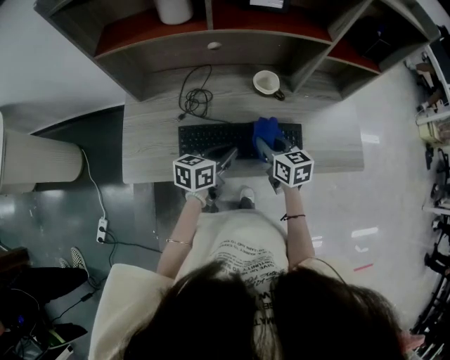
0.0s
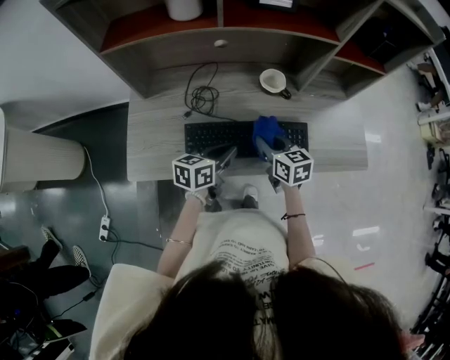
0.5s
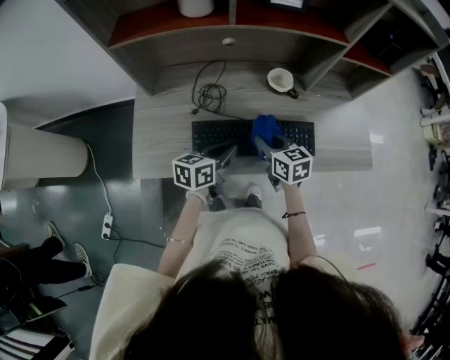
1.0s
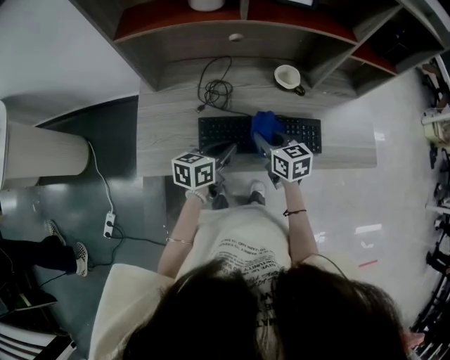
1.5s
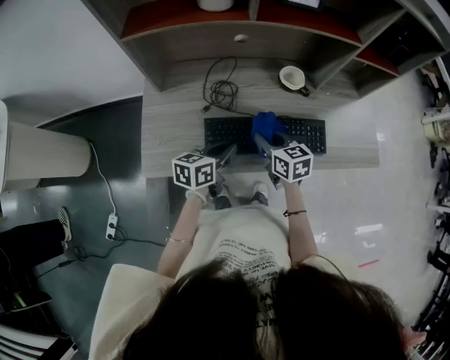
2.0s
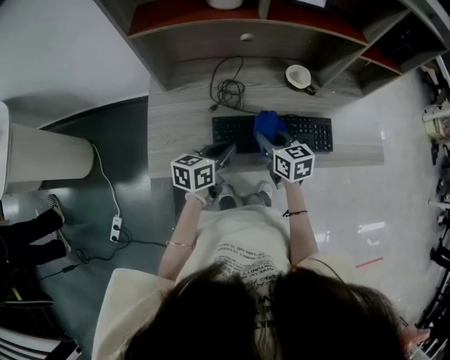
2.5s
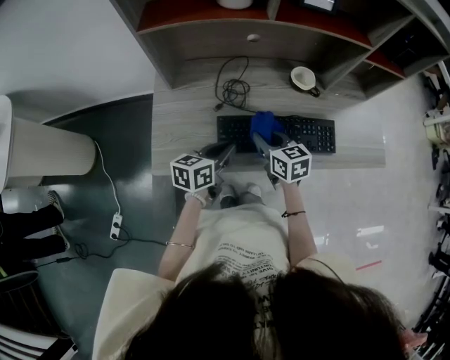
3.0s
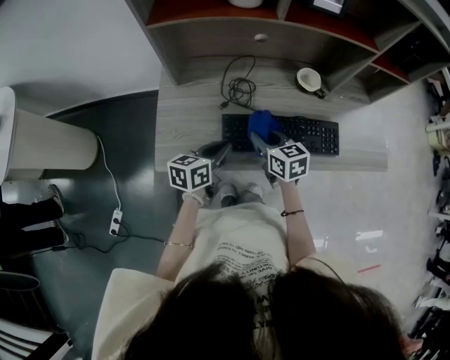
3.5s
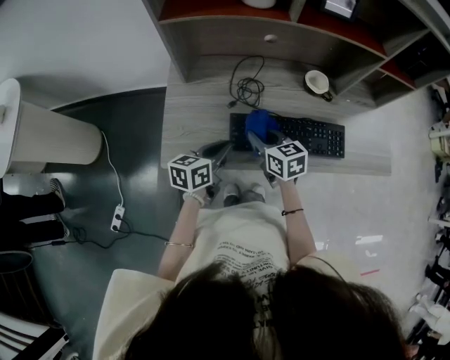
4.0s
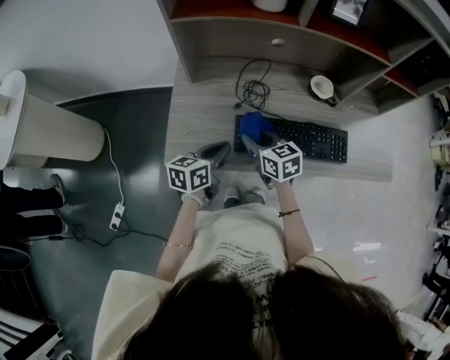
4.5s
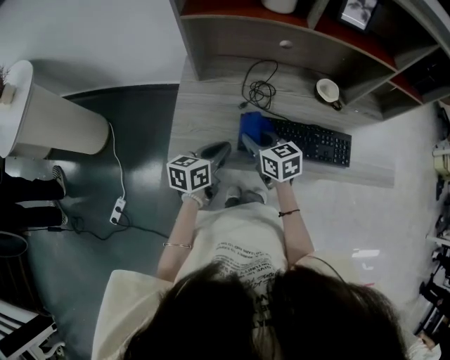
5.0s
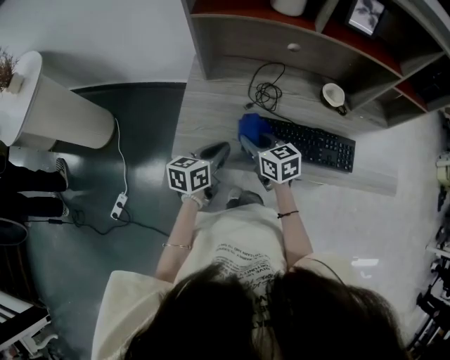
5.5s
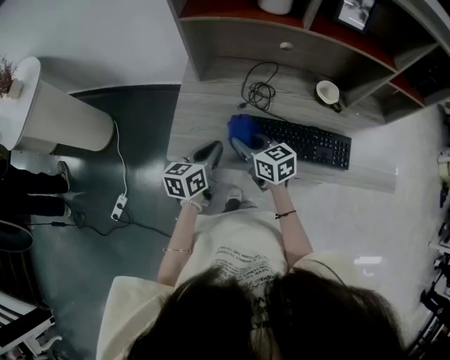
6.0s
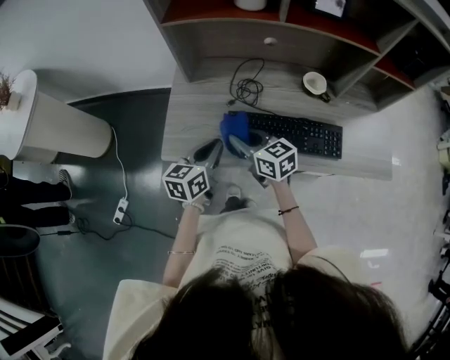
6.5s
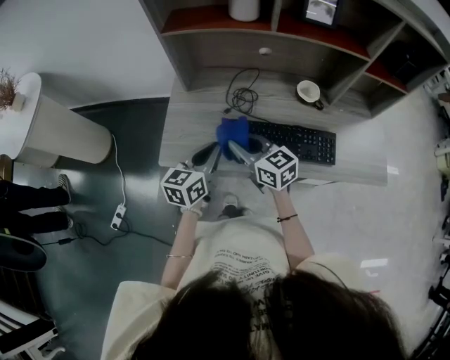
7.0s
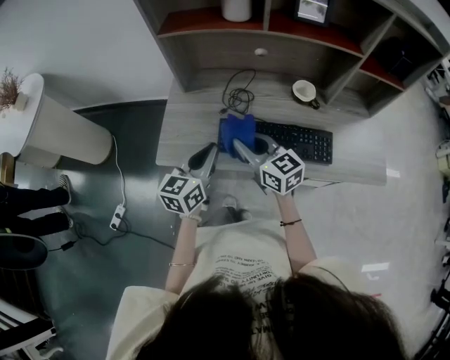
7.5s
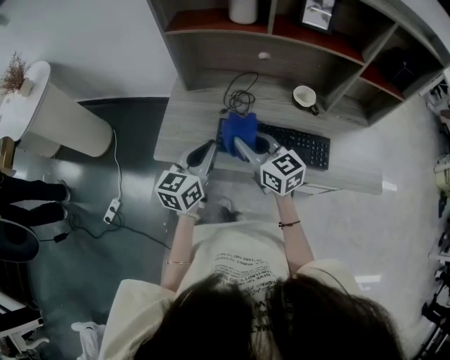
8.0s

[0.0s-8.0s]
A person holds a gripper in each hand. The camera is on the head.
0.0s to 2.0s: Both grippers travel together to the left, about 10 cm.
2.0s to 4.0s: Both grippers move to the left, some 10 cm.
4.0s to 6.0s: The right gripper heads to the left, covering roughly 5 cm. Meanwhile the left gripper changes place by about 5 cm.
6.0s to 8.0s: Both grippers travel together upward, to the right and backward, roughly 15 cm.

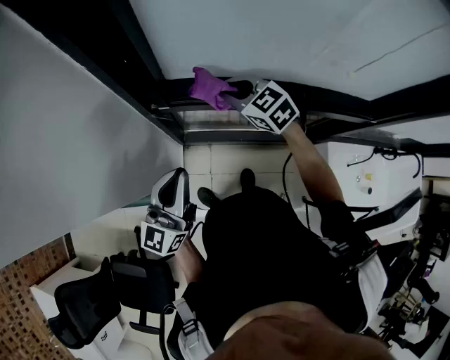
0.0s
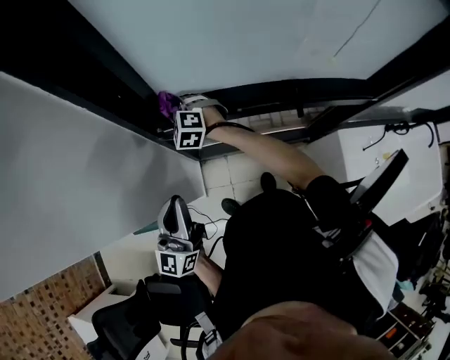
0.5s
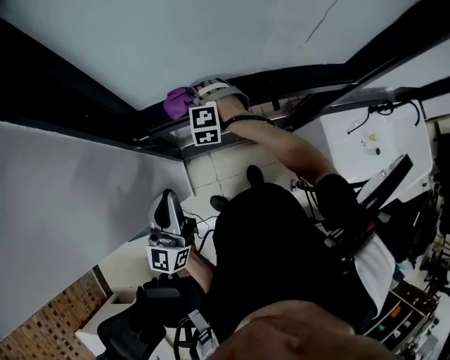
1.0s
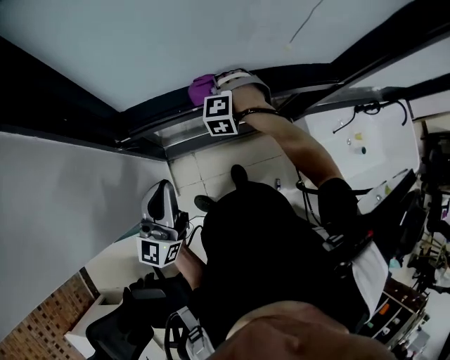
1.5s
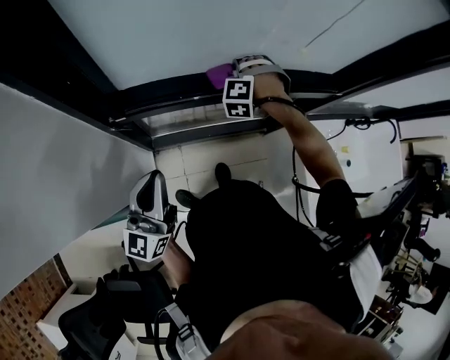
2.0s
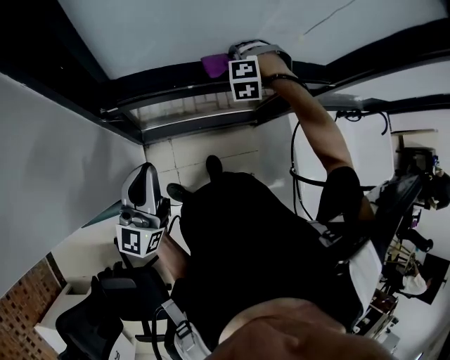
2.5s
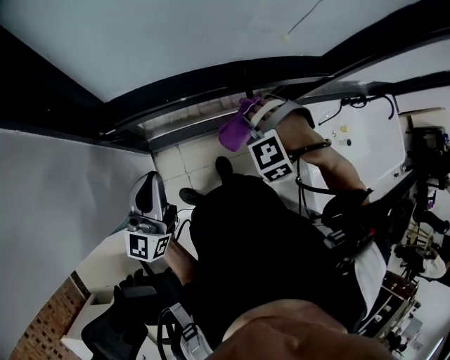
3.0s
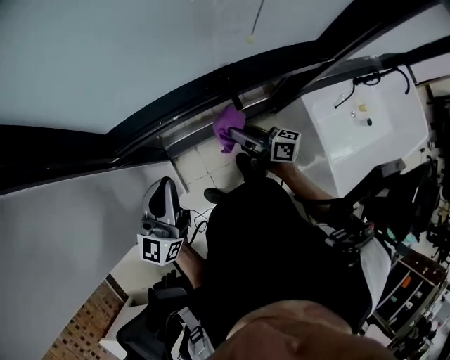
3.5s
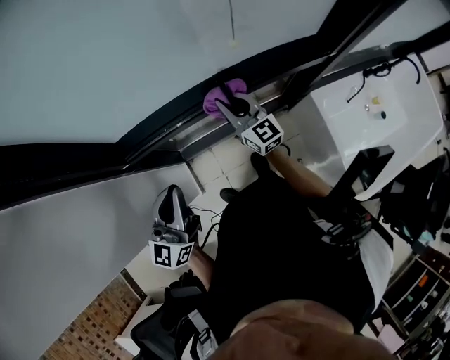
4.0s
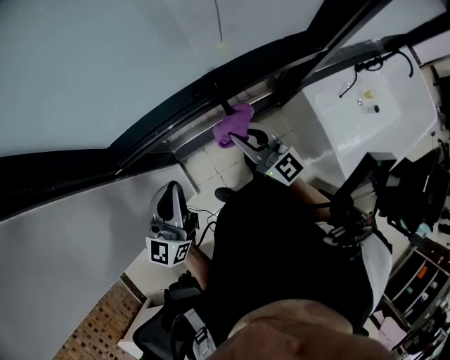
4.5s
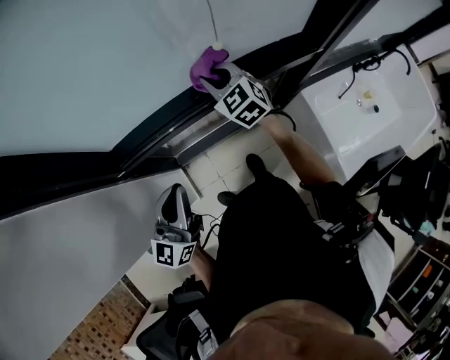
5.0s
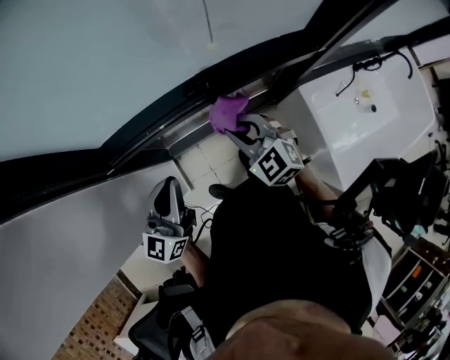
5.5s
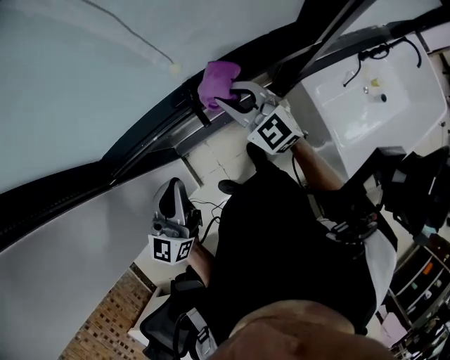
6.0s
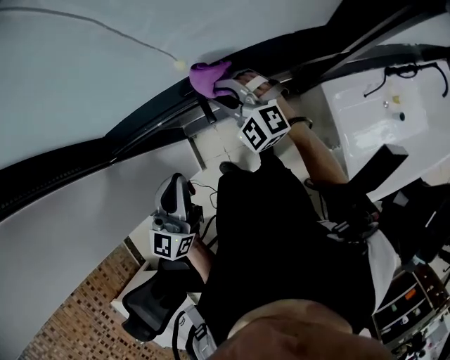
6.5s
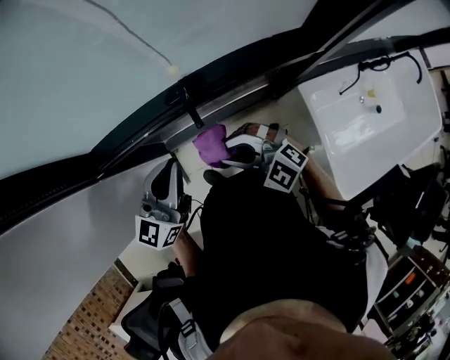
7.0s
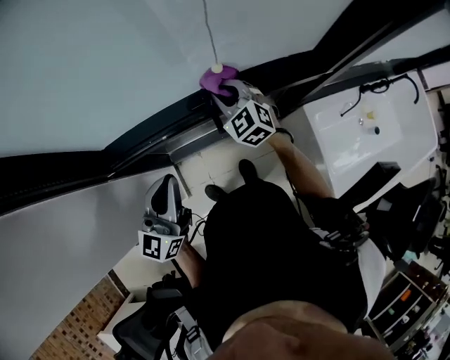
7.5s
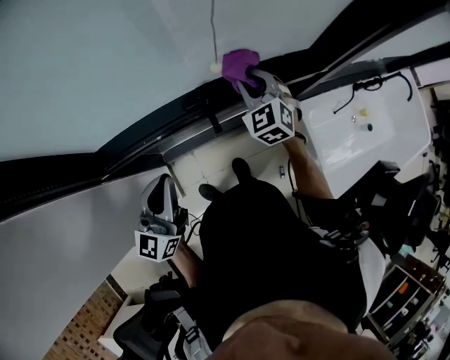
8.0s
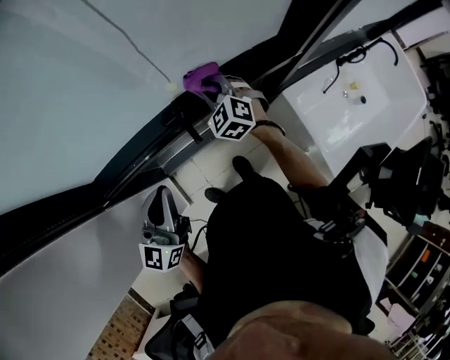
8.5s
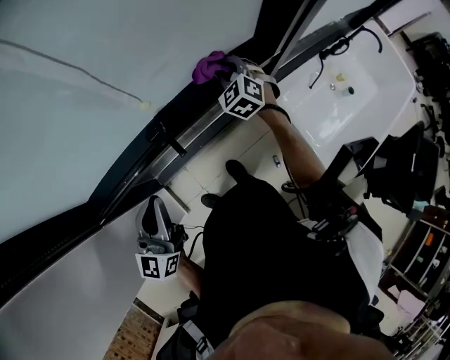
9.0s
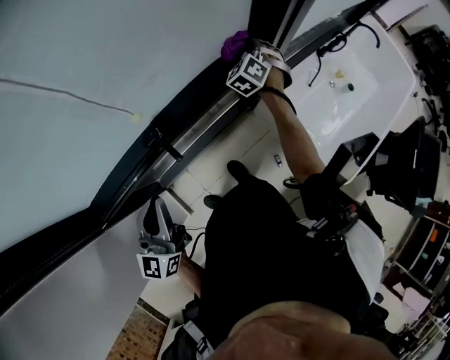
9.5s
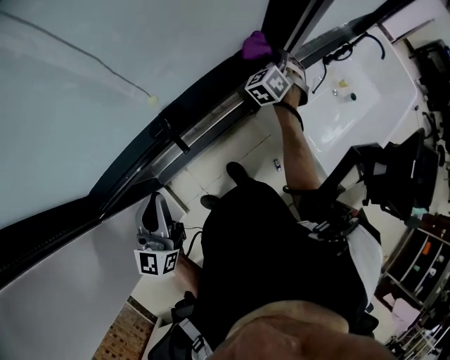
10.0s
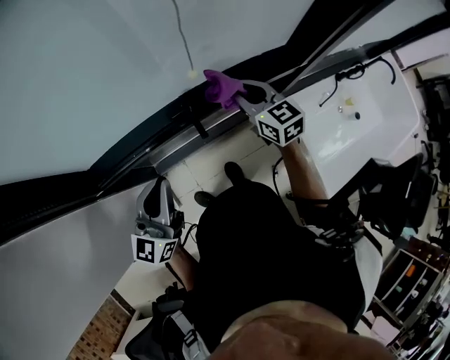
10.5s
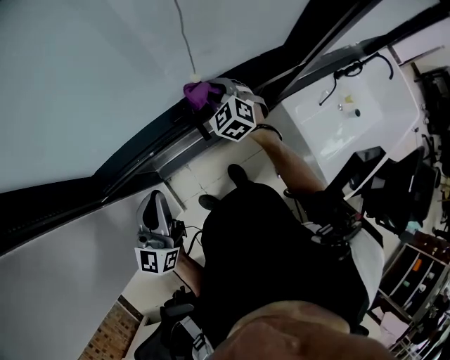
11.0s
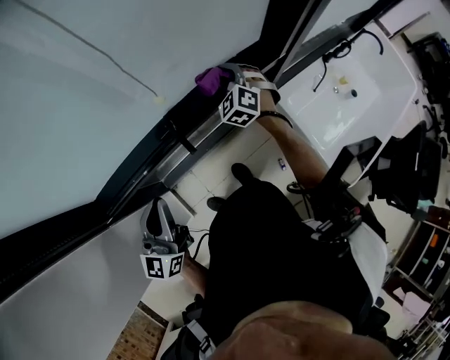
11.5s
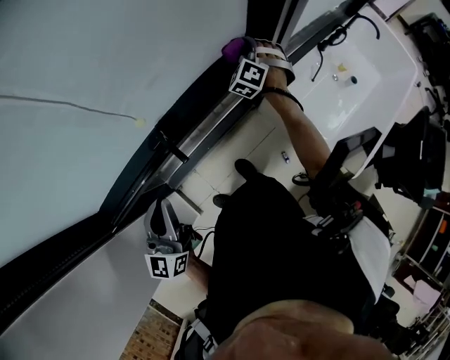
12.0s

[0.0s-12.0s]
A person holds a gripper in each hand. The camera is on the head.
0.0s to 2.0s: The right gripper changes place by approximately 25 cm, and swivels about 80 degrees.
2.0s to 4.0s: The left gripper heads to the right and forward, covering roughly 10 cm. The right gripper moves some 20 cm backward and comes back, and tilts its fingers about 50 degrees upward.
4.0s to 6.0s: The right gripper goes forward and backward, about 15 cm each way, reversing 3 times, and swivels roughly 20 degrees. Meanwhile the left gripper shifts about 10 cm to the right.
6.0s to 8.0s: The right gripper moves about 15 cm backward and comes back, and swivels some 30 degrees.
8.0s to 10.0s: The right gripper changes place by about 25 cm, and turns by approximately 40 degrees.

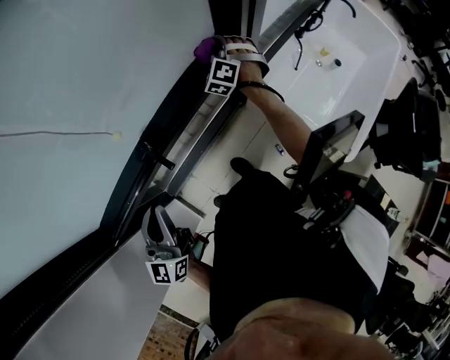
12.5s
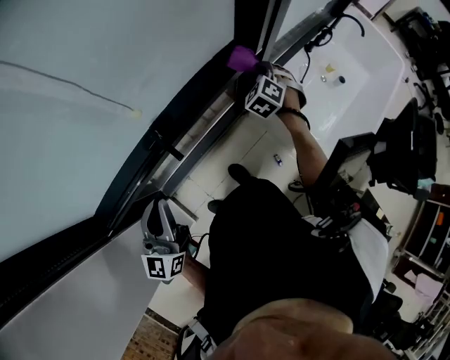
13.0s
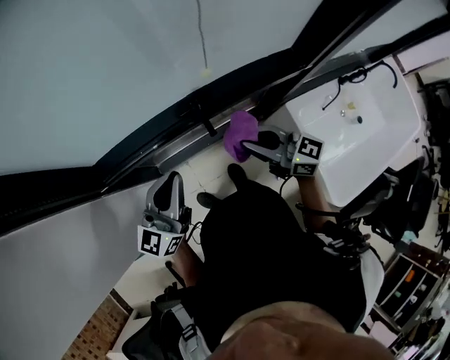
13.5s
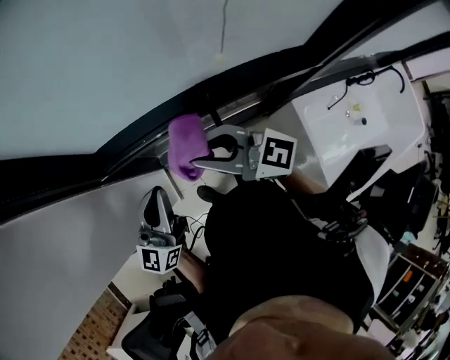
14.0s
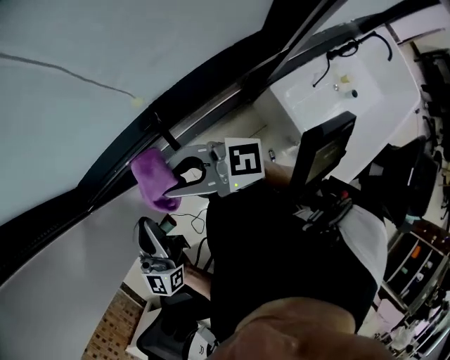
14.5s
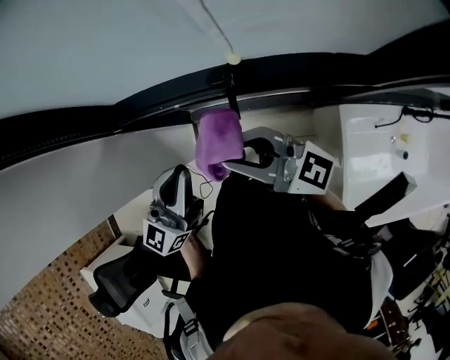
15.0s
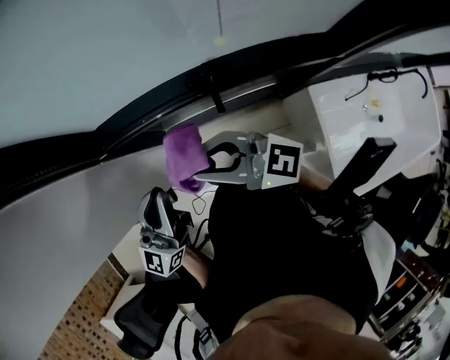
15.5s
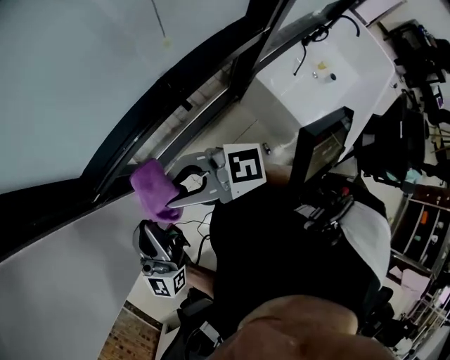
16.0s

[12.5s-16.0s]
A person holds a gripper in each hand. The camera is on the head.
12.5s to 14.5s: The right gripper ends up roughly 50 cm from where it was, and points its fingers some 40 degrees further upward. The left gripper ends up roughly 10 cm from where it was, and changes its angle by approximately 20 degrees.
14.5s to 16.0s: The two grippers go roughly 15 cm to the left.

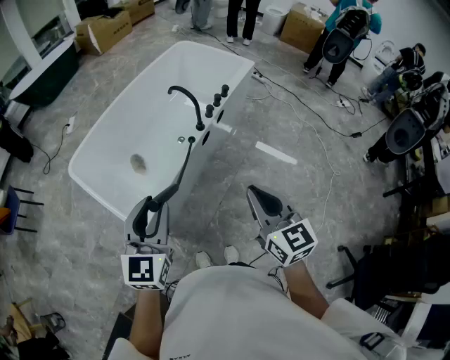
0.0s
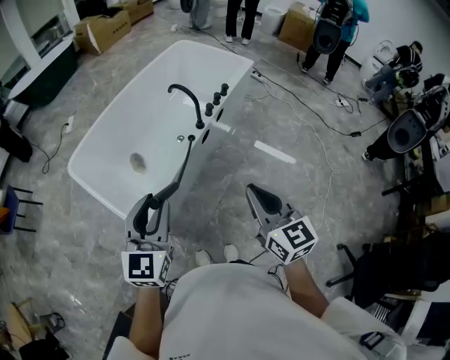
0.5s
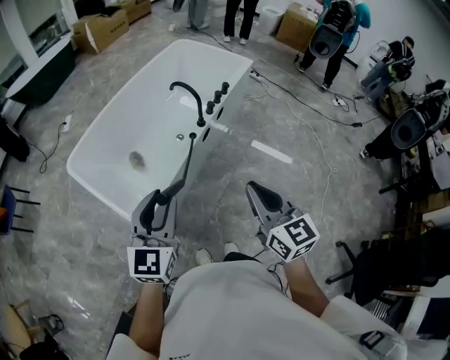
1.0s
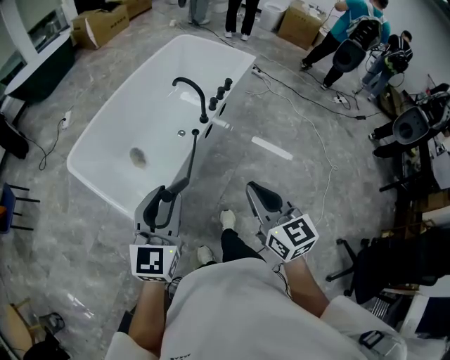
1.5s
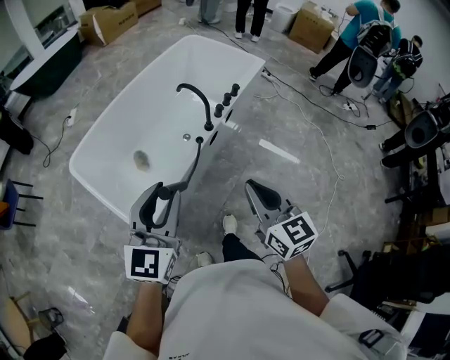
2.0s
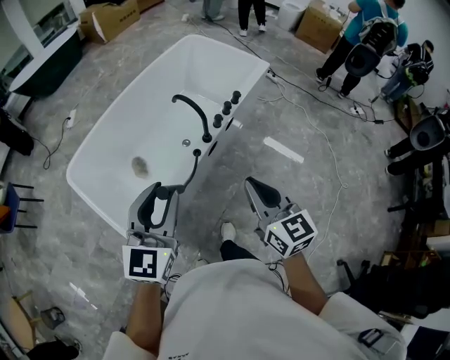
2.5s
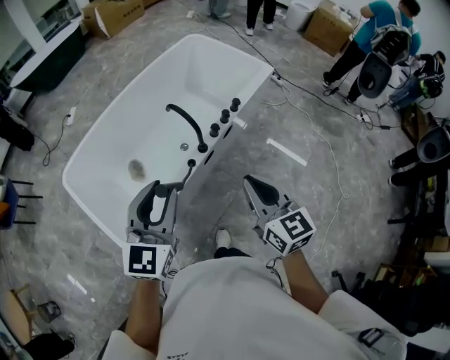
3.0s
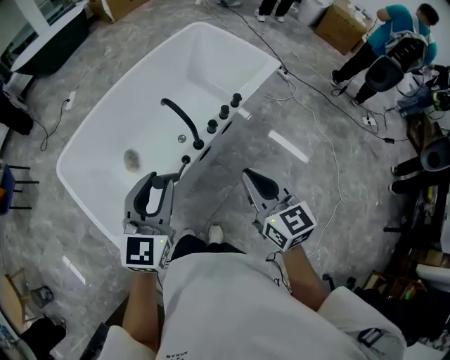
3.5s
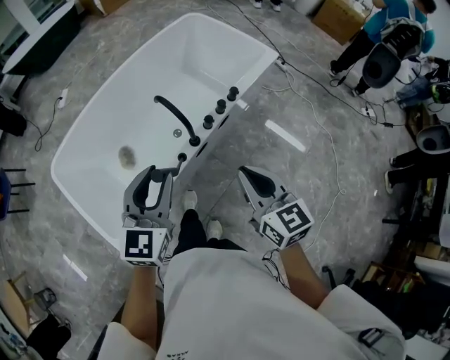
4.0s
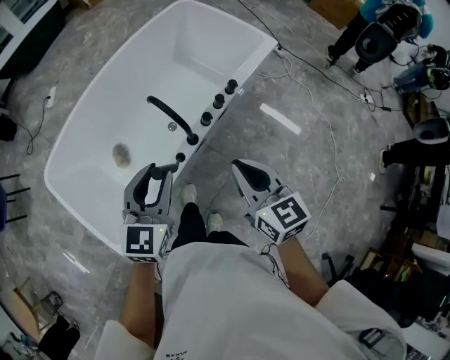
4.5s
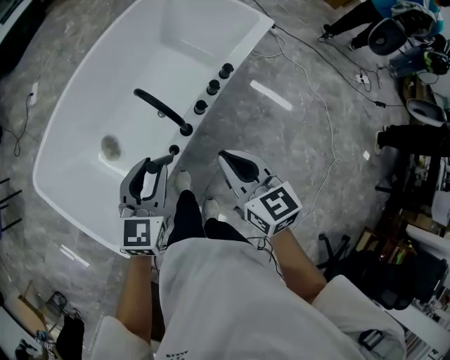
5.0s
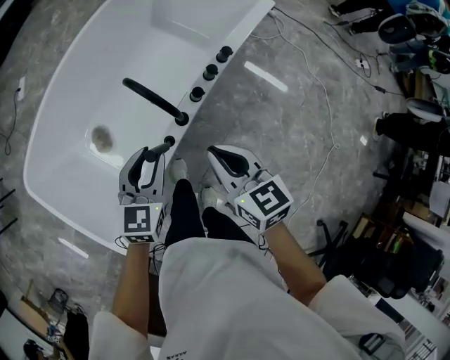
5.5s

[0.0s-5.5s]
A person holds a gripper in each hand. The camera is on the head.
0.0s to 2.0s: Both grippers move forward, roughly 5 cm.
2.0s to 3.5s: The grippers both shift forward and to the right by roughly 25 cm.
3.5s to 5.5s: The right gripper travels downward, forward and to the left by about 20 cm, while the left gripper shifts some 25 cm downward and forward.
